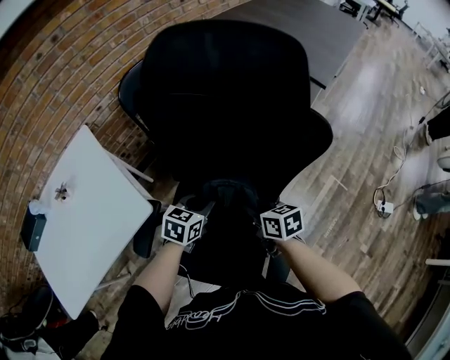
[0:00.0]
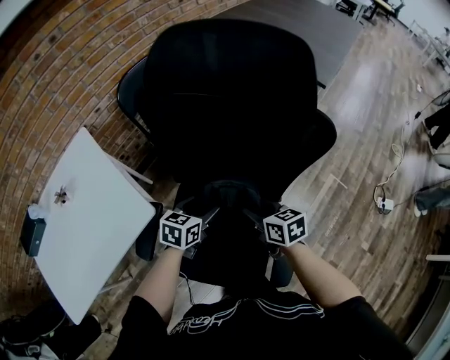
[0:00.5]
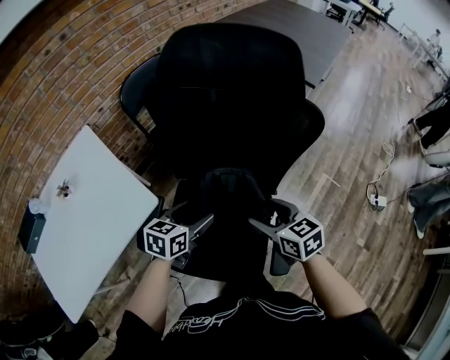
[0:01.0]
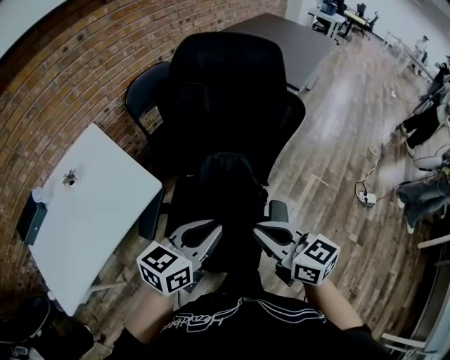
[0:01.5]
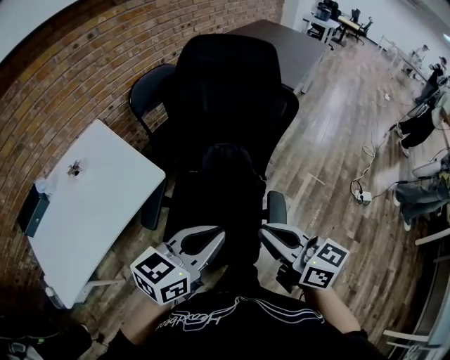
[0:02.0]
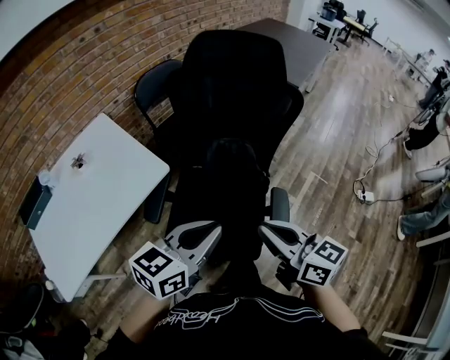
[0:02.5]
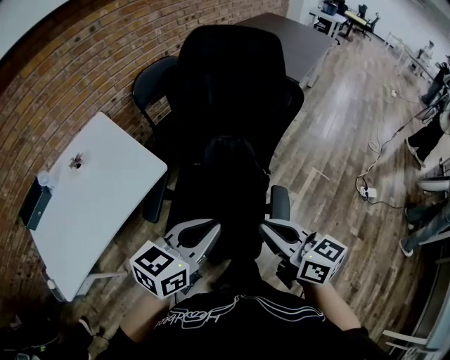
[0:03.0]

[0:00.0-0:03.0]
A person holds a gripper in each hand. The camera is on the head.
0:00.0 to 0:01.5: The left gripper is displaced backward and upward by roughly 30 cm, turns by some 30 degrees, and opens and closes again, while the right gripper shifts approximately 30 cm upward and backward, changes its angle by approximately 30 degrees, and opens, then closes once more.
0:01.5 to 0:03.0: Both grippers move backward, roughly 5 cm.

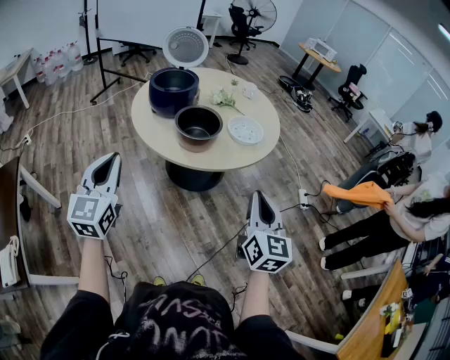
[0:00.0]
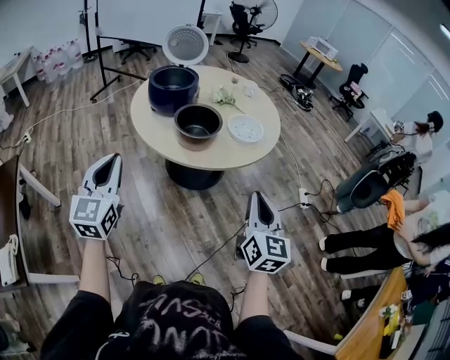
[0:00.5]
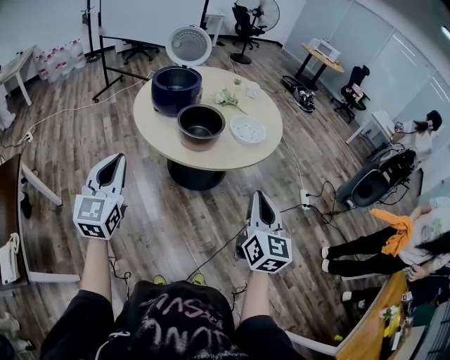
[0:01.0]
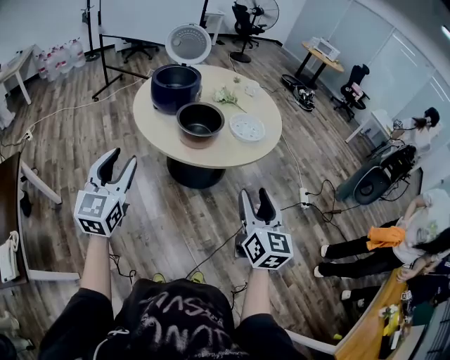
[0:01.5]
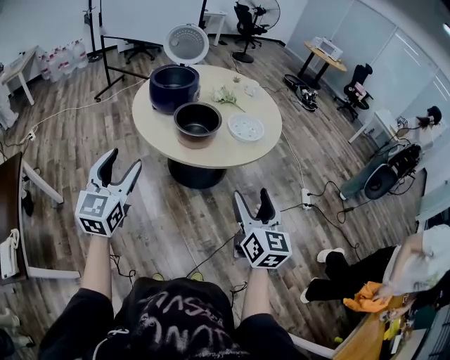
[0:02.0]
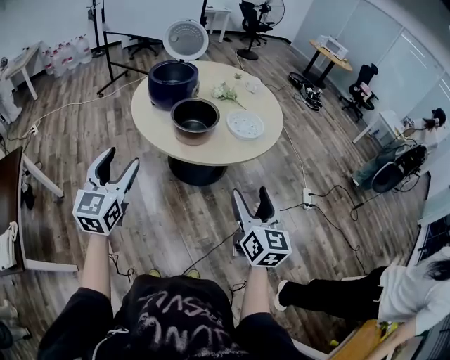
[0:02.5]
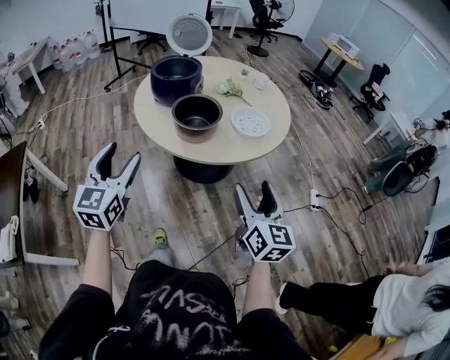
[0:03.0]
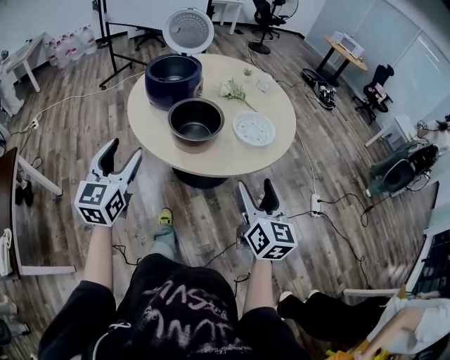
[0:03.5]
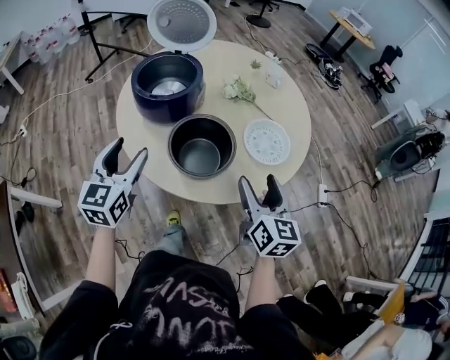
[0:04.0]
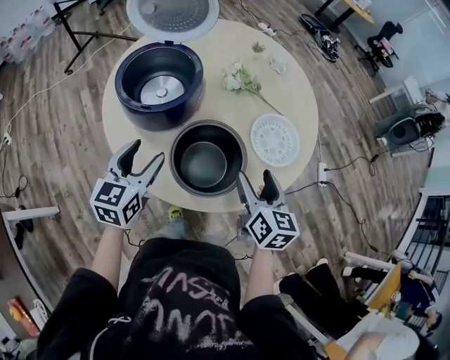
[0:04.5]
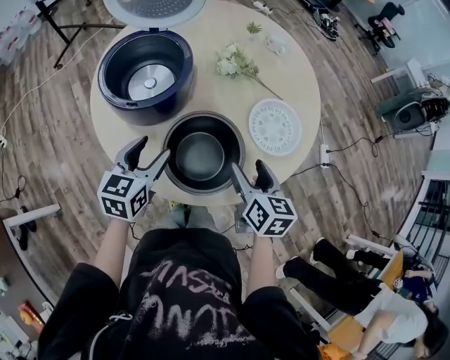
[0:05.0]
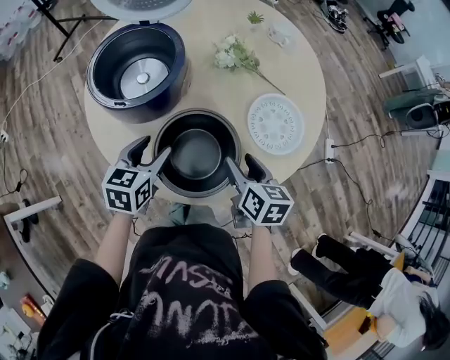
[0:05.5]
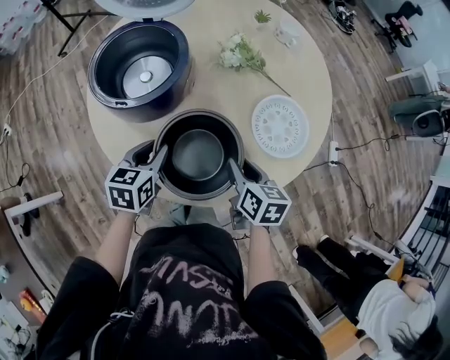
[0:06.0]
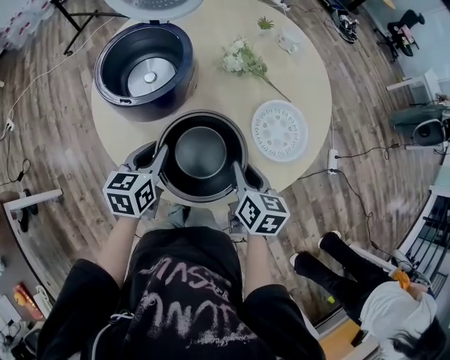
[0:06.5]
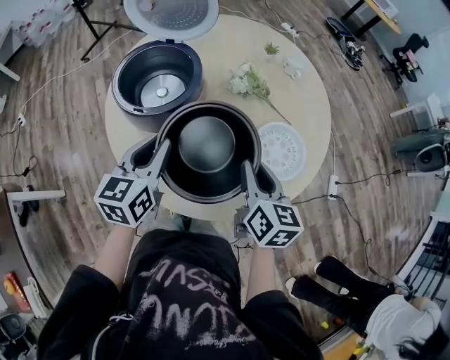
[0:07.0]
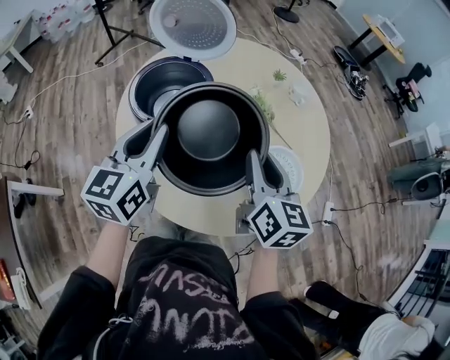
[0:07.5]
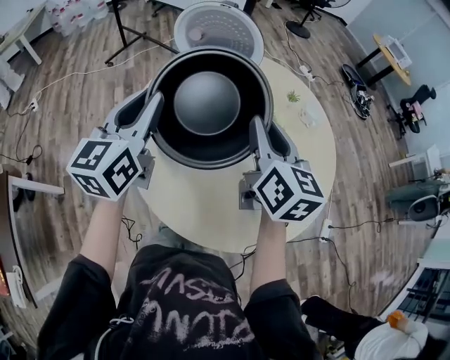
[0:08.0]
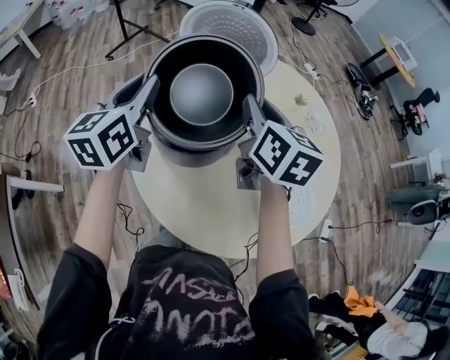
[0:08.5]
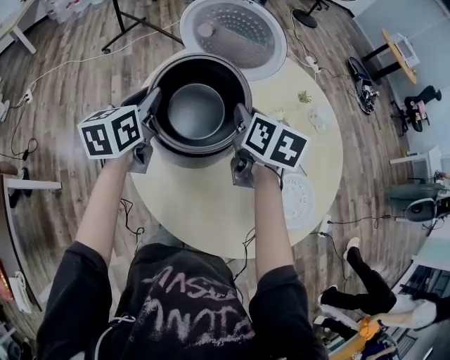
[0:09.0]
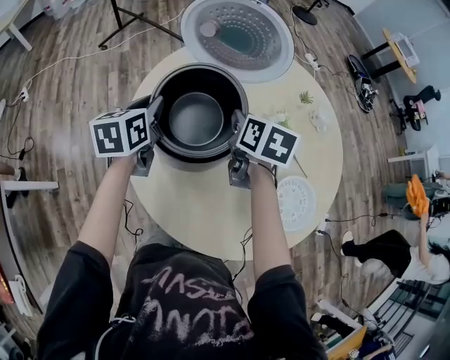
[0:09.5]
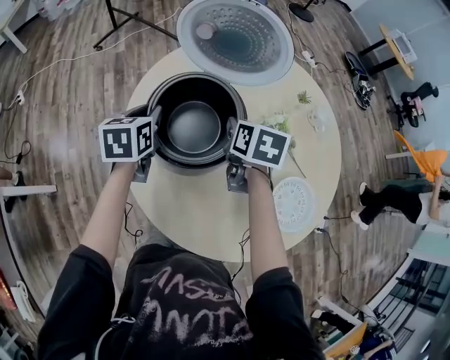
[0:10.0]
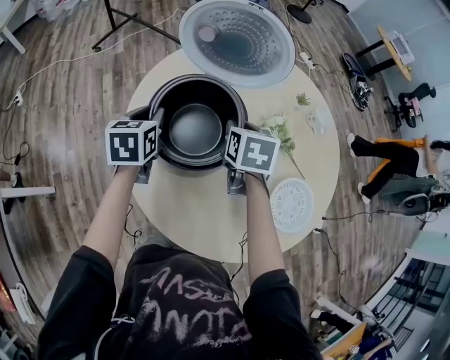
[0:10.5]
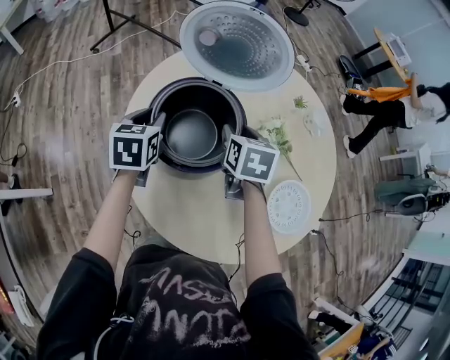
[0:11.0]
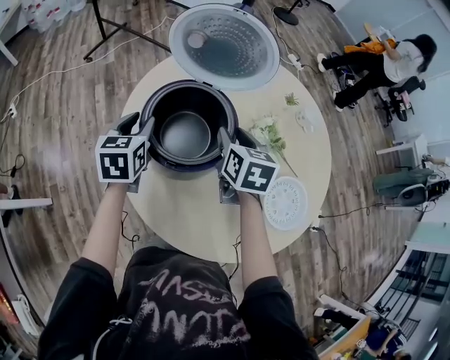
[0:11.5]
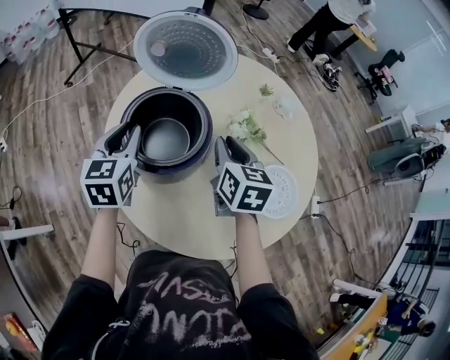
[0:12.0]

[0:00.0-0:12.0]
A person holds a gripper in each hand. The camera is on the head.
0:00.0 to 0:02.0: The left gripper shifts about 5 cm to the right, and opens up; the right gripper opens up.
0:02.0 to 0:04.0: The two grippers go roughly 30 cm forward.
0:04.0 to 0:06.0: Both grippers move downward and forward, some 20 cm. The left gripper swivels roughly 30 degrees, and closes. The right gripper turns by some 30 degrees, and closes up.
0:06.0 to 0:08.0: The right gripper moves upward and forward, some 35 cm, and points its fingers roughly 30 degrees further upward, while the left gripper heads upward, covering roughly 30 cm, and tilts its fingers approximately 40 degrees upward.
0:08.0 to 0:10.0: The two grippers go approximately 25 cm downward and forward. The left gripper angles its fingers downward, by about 40 degrees; the right gripper angles its fingers downward, by about 40 degrees.
0:10.0 to 0:12.0: The right gripper is displaced backward and upward by approximately 10 cm, and turns by roughly 20 degrees. The left gripper moves upward, some 10 cm, and changes its angle by approximately 20 degrees.

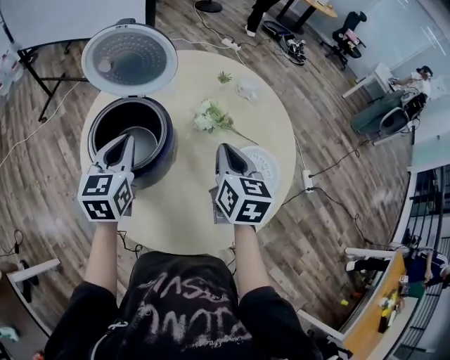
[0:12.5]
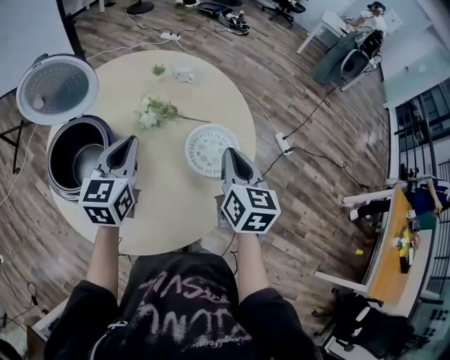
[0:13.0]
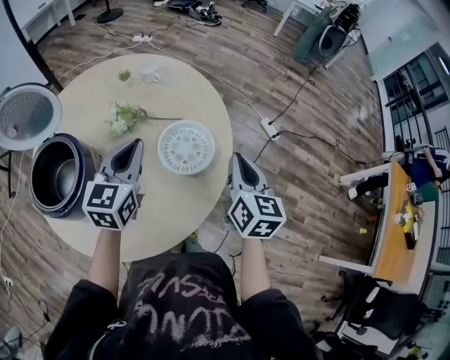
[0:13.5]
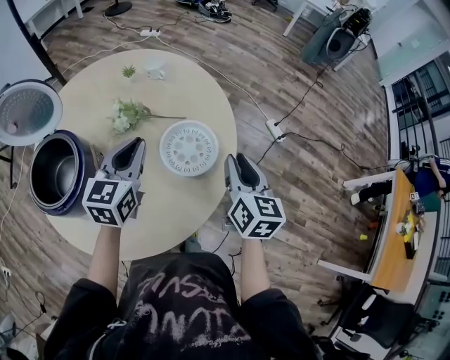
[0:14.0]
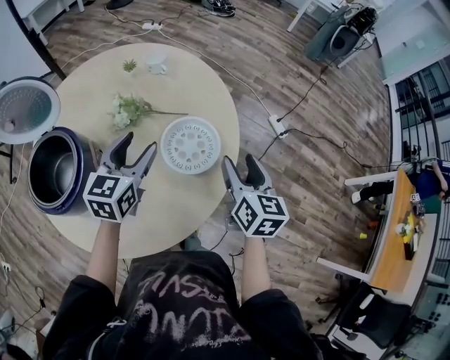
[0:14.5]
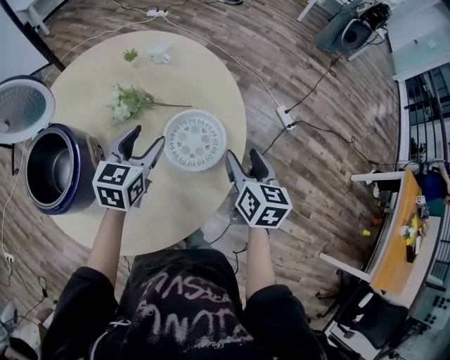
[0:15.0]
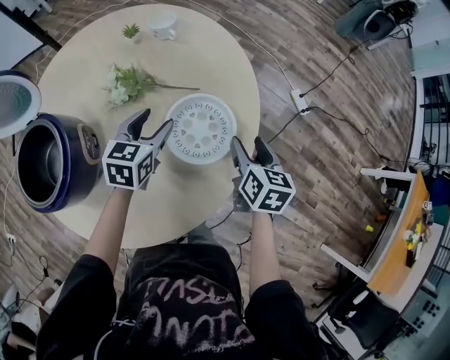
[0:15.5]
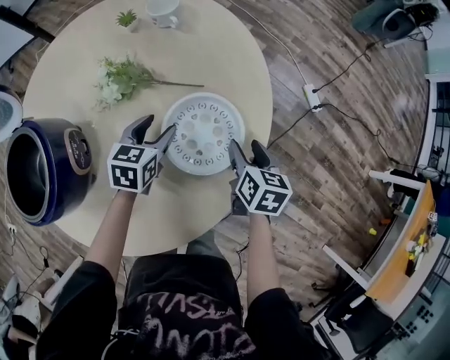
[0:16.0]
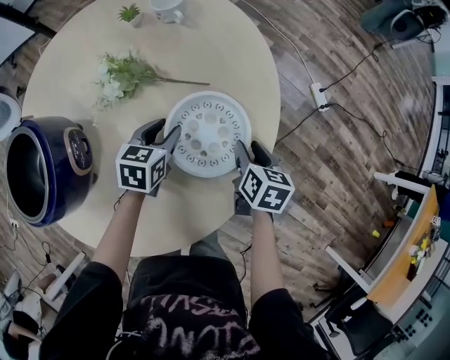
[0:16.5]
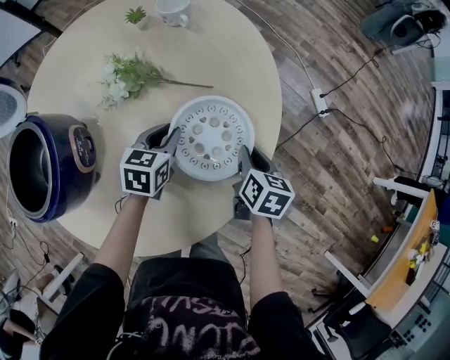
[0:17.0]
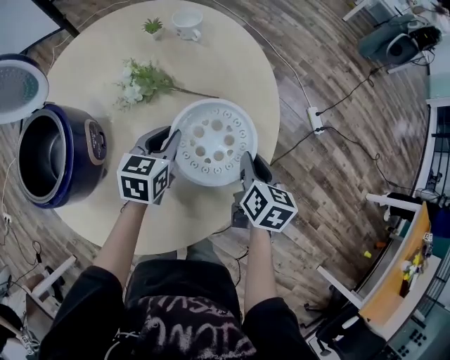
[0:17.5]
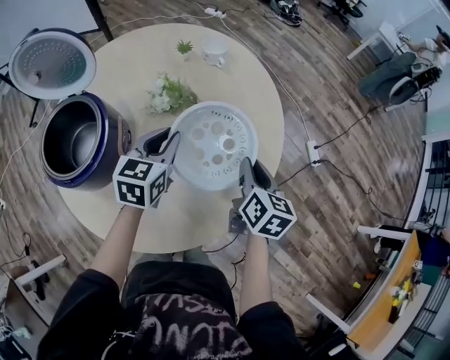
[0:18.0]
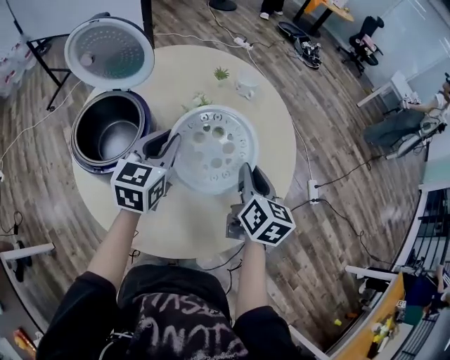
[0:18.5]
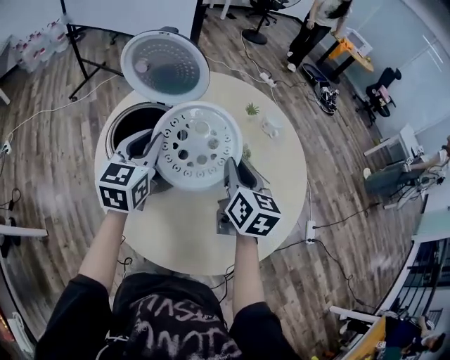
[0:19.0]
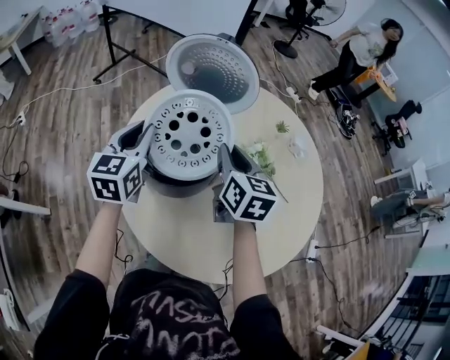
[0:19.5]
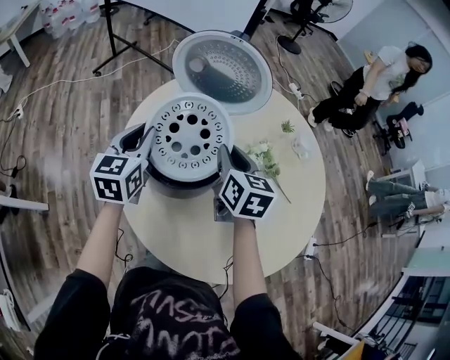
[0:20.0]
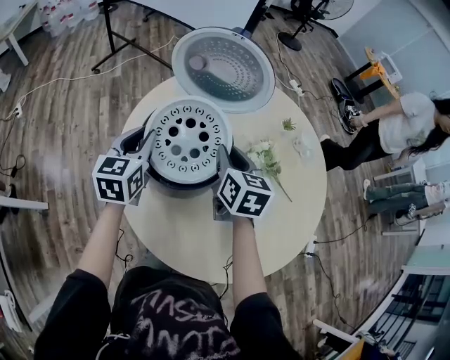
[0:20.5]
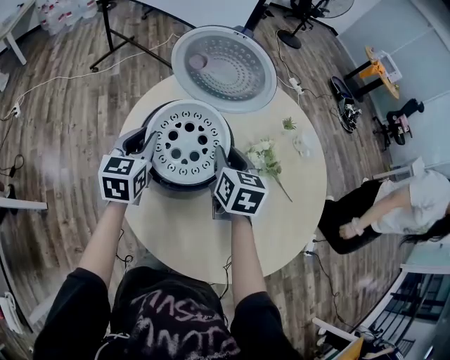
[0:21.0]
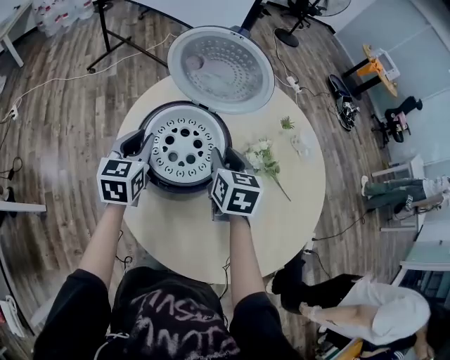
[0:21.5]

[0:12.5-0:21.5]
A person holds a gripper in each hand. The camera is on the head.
0:12.5 to 0:14.5: The left gripper ends up roughly 30 cm from where it was, swivels roughly 30 degrees, and opens its fingers. Meanwhile the right gripper changes place by approximately 30 cm, turns by some 30 degrees, and opens.
0:14.5 to 0:17.0: Both grippers travel together downward, some 25 cm. The left gripper swivels roughly 20 degrees, and closes its fingers, while the right gripper rotates approximately 30 degrees, and closes up.
0:17.0 to 0:19.5: The pair of grippers is taken approximately 40 cm. The right gripper turns by roughly 50 degrees; the left gripper rotates some 50 degrees.
0:19.5 to 0:21.5: The grippers both shift downward by roughly 5 cm.

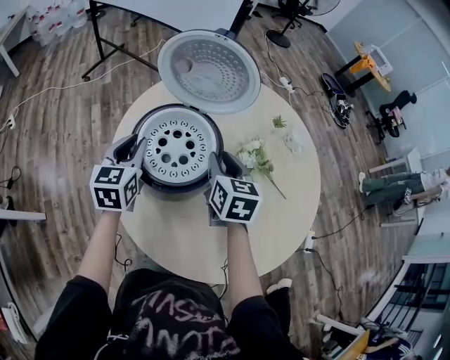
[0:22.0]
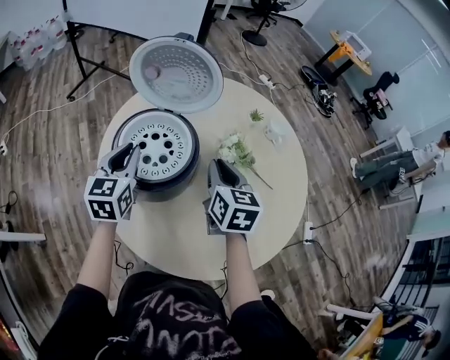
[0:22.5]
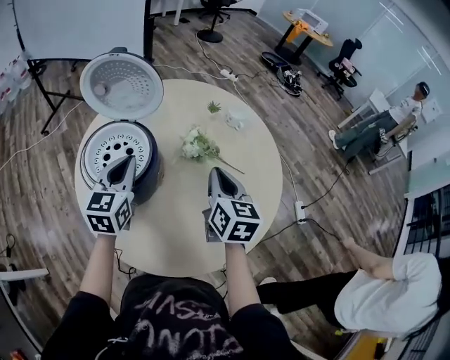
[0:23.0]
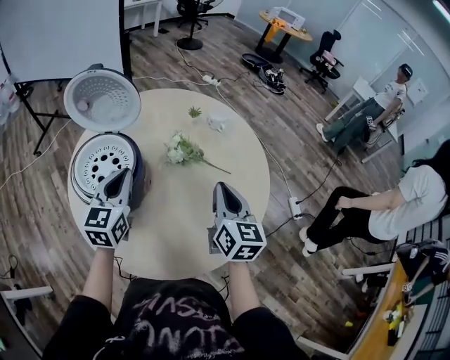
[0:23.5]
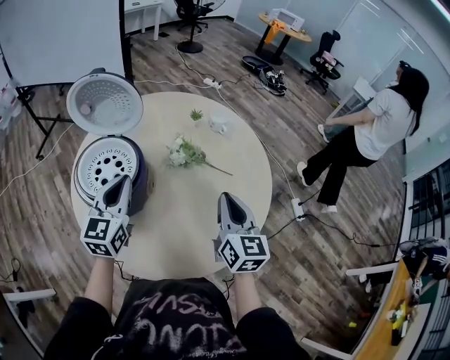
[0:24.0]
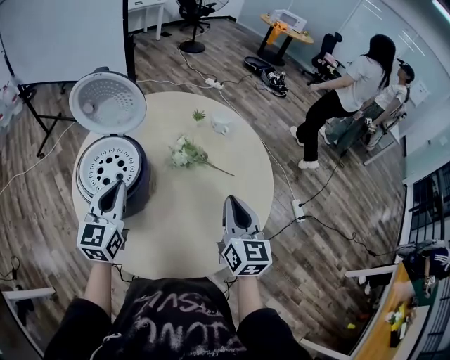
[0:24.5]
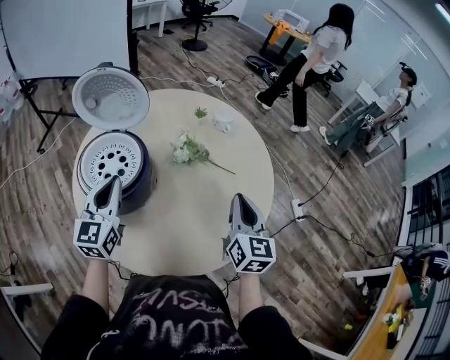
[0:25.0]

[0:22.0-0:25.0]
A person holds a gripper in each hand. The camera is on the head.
0:22.0 to 0:23.5: The left gripper moves to the right, approximately 20 cm, and swivels about 20 degrees. Meanwhile the right gripper goes approximately 30 cm to the right and backward, and rotates approximately 30 degrees.
0:23.5 to 0:25.0: The right gripper changes place by roughly 5 cm. Meanwhile the left gripper shifts by approximately 5 cm.
